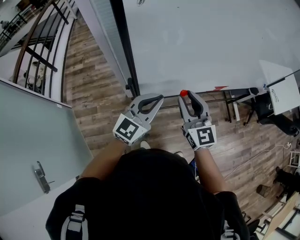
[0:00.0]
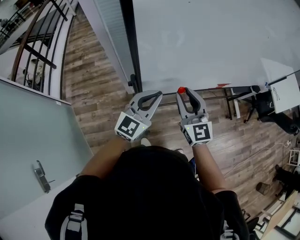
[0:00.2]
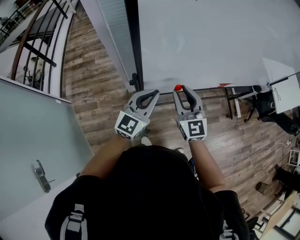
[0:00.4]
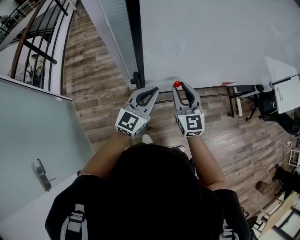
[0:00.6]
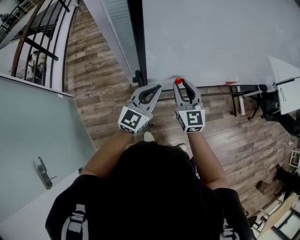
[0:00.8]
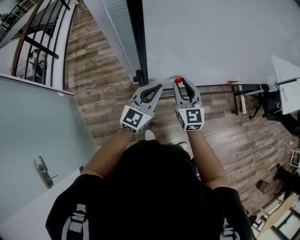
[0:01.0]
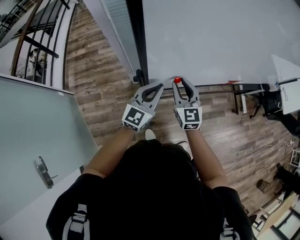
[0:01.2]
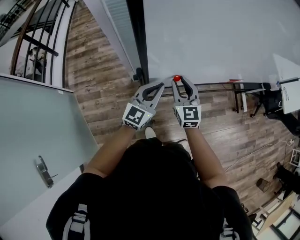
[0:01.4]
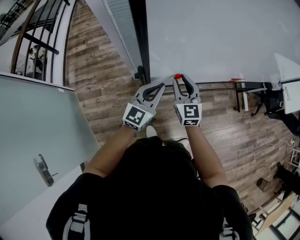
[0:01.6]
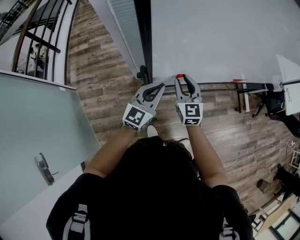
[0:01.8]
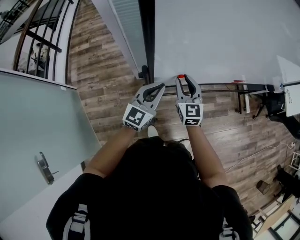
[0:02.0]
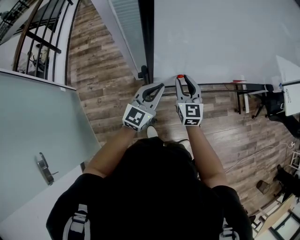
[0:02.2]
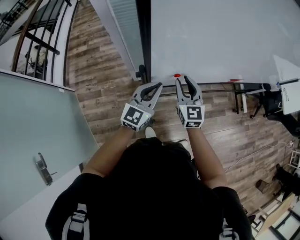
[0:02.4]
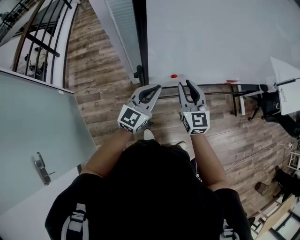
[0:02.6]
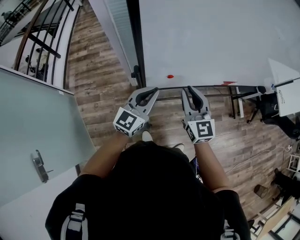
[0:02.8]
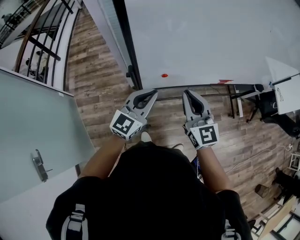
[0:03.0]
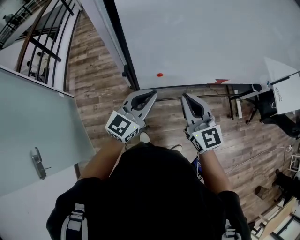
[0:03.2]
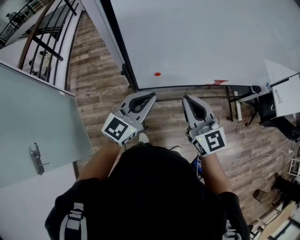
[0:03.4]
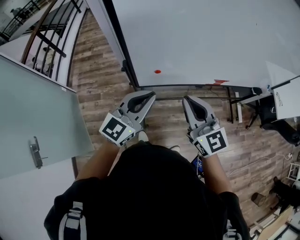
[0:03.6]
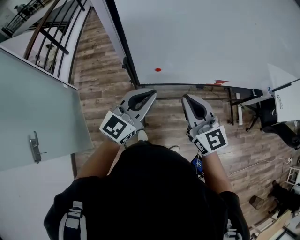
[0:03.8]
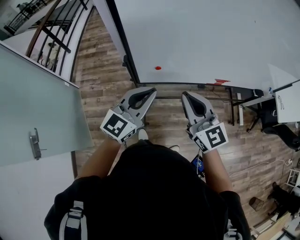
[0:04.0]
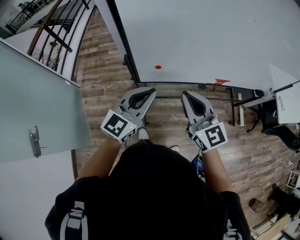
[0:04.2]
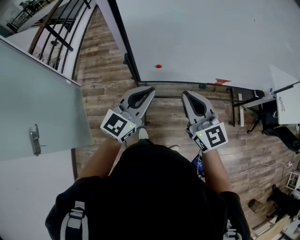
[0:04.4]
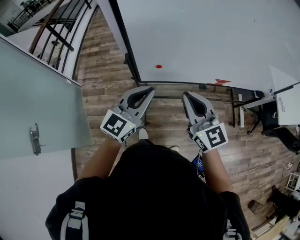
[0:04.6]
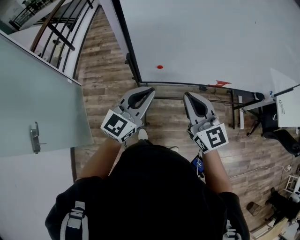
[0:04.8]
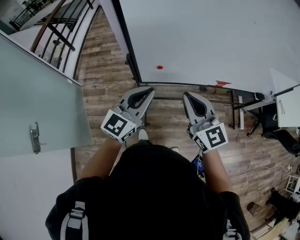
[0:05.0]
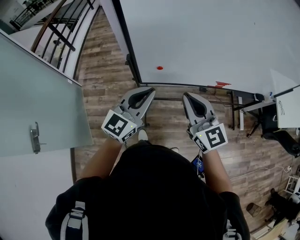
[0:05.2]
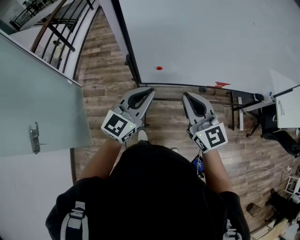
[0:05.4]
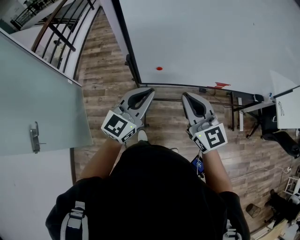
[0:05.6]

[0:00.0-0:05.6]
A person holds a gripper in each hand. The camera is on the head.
0:00.0 to 0:01.4: Both grippers travel together downward, to the left and forward, some 15 cm.
0:01.4 to 0:02.8: The right gripper heads upward, backward and to the right, covering some 10 cm. The left gripper moves upward, roughly 5 cm.
0:02.8 to 0:04.2: The left gripper goes some 15 cm upward, backward and to the right. The right gripper heads backward, upward and to the right, covering roughly 15 cm, and turns by about 20 degrees.
0:04.2 to 0:05.6: Neither gripper changes place.

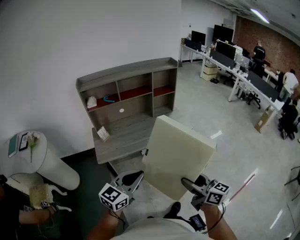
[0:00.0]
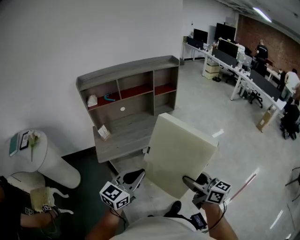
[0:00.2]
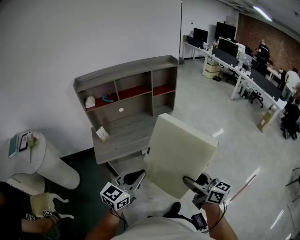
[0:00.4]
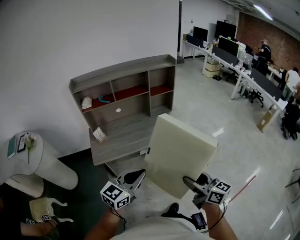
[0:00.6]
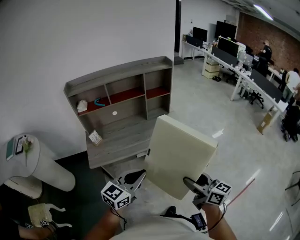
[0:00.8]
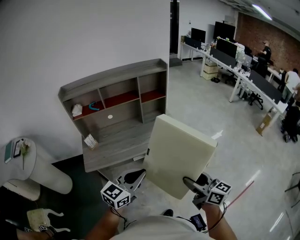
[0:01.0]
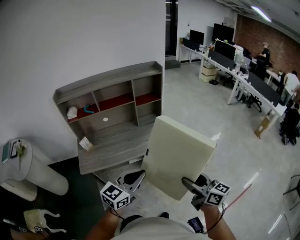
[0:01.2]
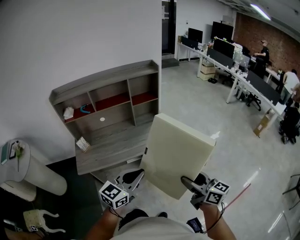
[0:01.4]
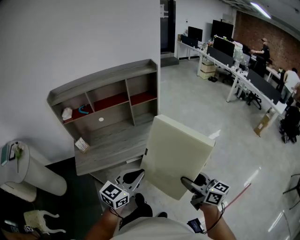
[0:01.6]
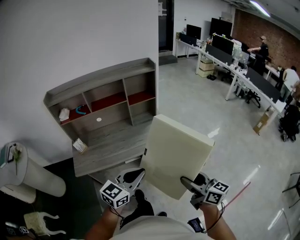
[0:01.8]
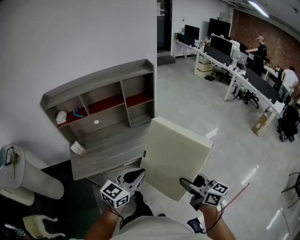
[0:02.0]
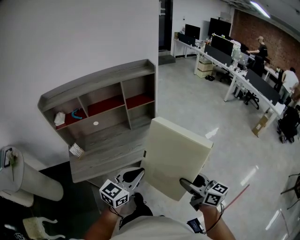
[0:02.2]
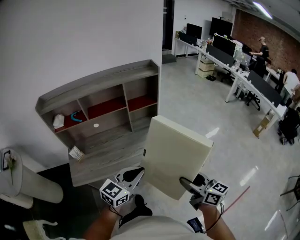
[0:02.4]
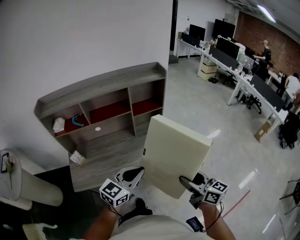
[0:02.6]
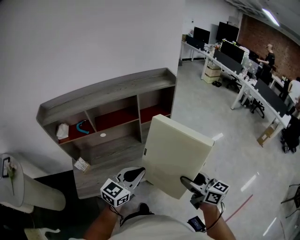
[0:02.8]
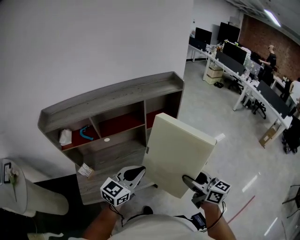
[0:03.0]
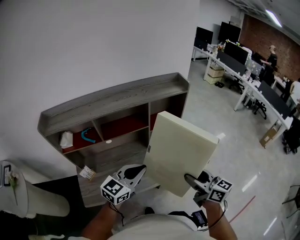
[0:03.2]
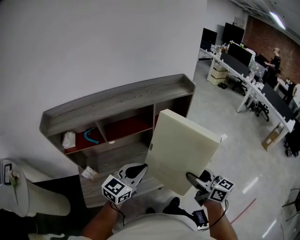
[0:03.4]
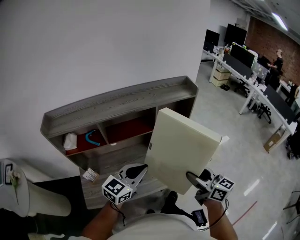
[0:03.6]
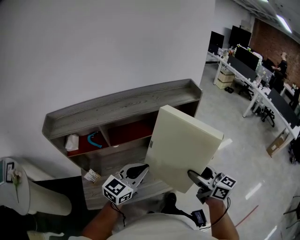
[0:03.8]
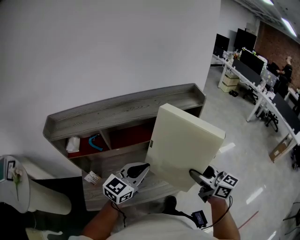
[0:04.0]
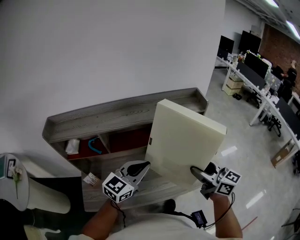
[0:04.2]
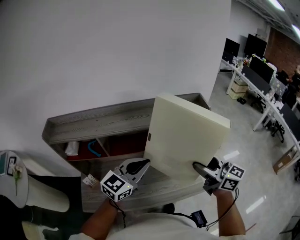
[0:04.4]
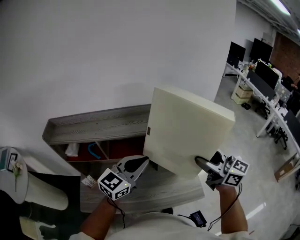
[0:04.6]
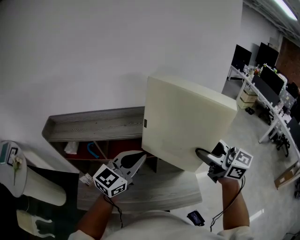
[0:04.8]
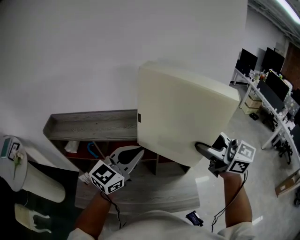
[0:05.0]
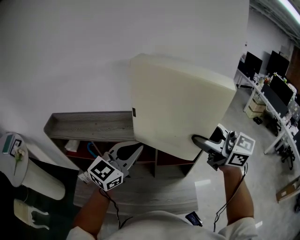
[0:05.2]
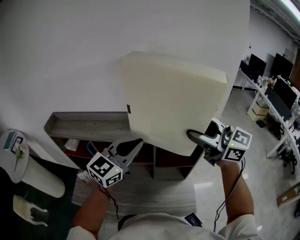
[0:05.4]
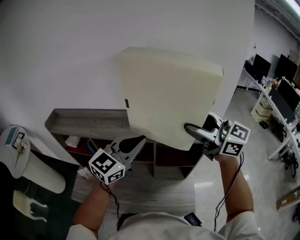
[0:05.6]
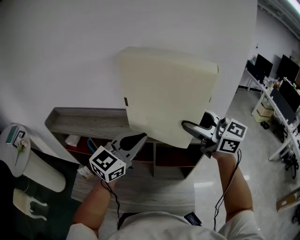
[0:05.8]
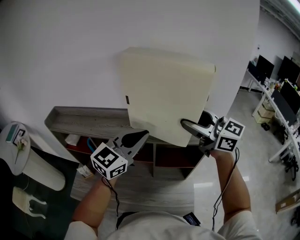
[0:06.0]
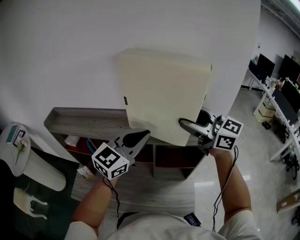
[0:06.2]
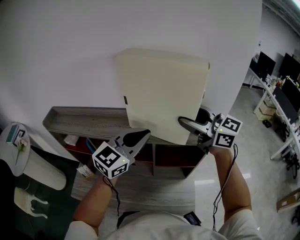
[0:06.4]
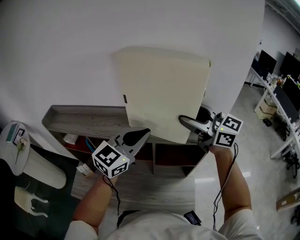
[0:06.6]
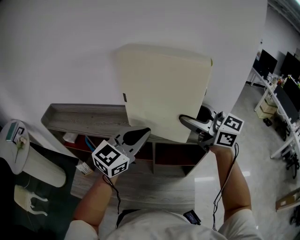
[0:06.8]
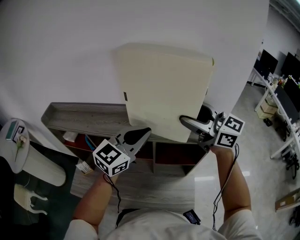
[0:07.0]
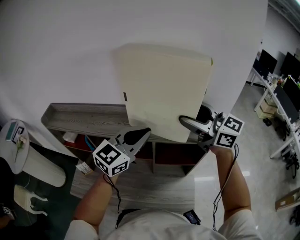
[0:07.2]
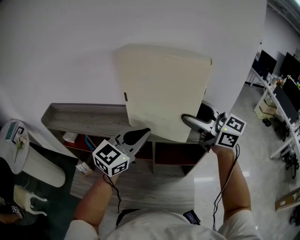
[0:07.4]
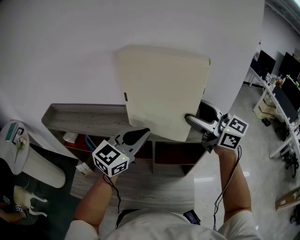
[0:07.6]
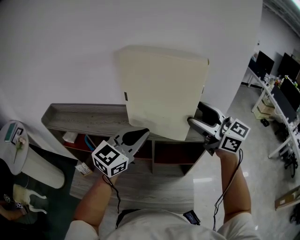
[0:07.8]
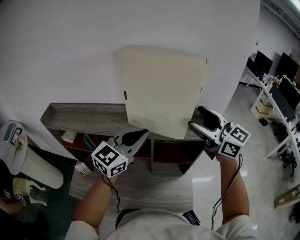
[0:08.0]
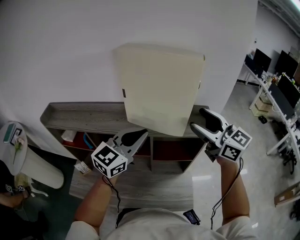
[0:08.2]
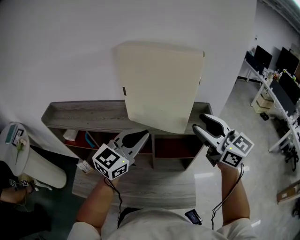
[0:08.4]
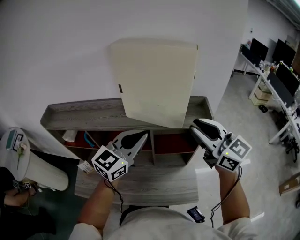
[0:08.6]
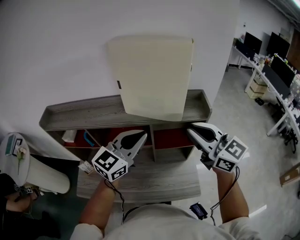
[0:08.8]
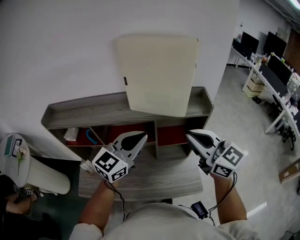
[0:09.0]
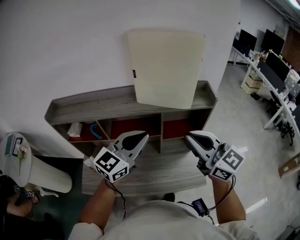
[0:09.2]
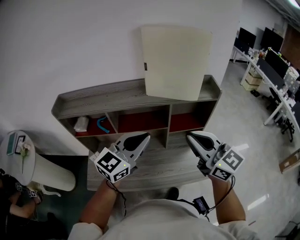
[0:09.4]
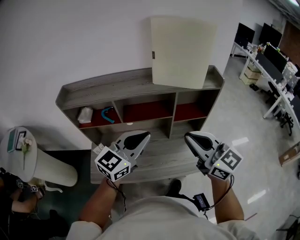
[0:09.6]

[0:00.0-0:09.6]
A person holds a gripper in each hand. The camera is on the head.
0:00.0 to 0:01.6: Both grippers move to the right and forward, approximately 30 cm.
0:01.6 to 0:03.2: Both grippers move forward and to the left, some 35 cm.
0:03.2 to 0:04.8: The two grippers go about 30 cm forward and upward. The right gripper swivels some 30 degrees.
0:04.8 to 0:06.4: The left gripper heads forward and to the right, covering about 10 cm, while the right gripper travels forward by roughly 15 cm.
0:06.4 to 0:08.0: There are only small adjustments of the grippers.
0:08.0 to 0:09.6: The two grippers go about 30 cm backward and to the left. The right gripper closes.

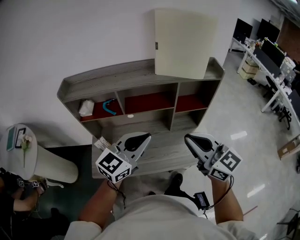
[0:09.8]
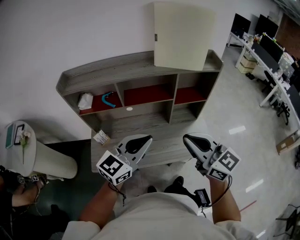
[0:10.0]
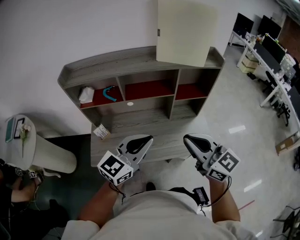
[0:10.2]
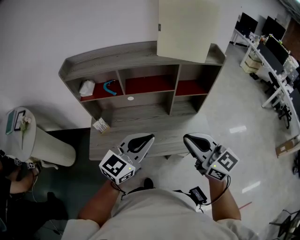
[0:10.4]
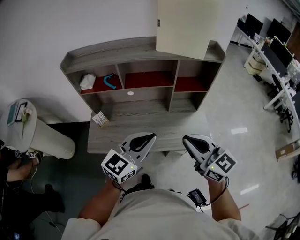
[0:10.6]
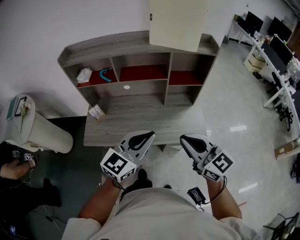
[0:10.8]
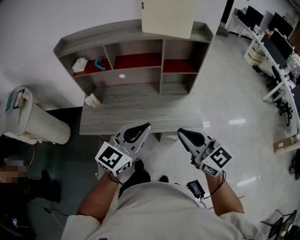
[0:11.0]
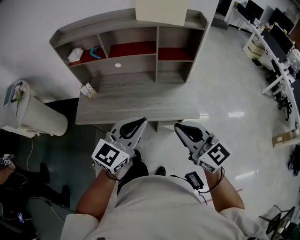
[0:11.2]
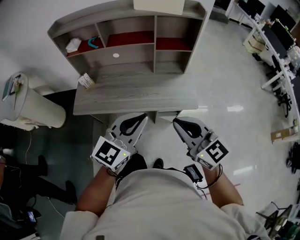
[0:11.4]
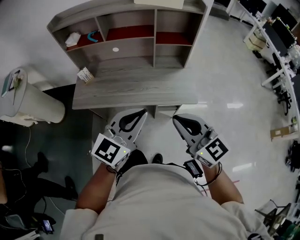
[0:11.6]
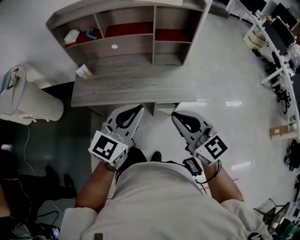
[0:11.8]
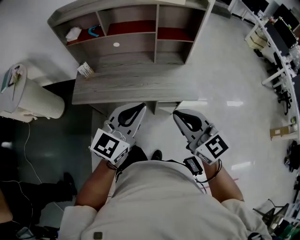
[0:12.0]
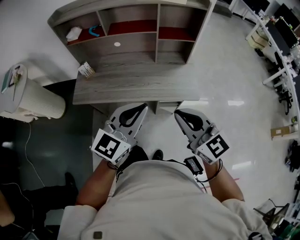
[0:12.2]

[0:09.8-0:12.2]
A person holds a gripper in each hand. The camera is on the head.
0:09.8 to 0:11.0: The left gripper shifts some 20 cm backward and to the right, while the right gripper goes about 20 cm backward, to the right and downward.
0:11.0 to 0:12.2: Both grippers move backward, roughly 10 cm.

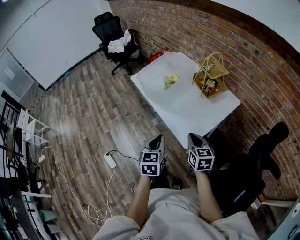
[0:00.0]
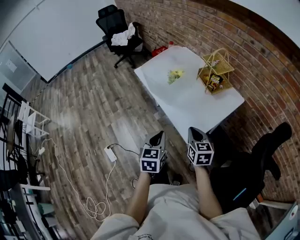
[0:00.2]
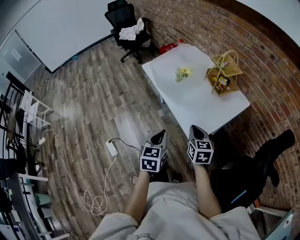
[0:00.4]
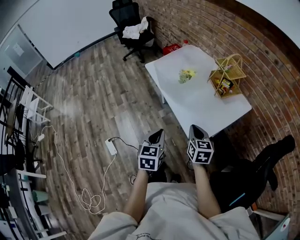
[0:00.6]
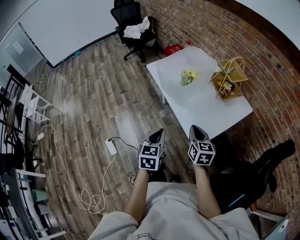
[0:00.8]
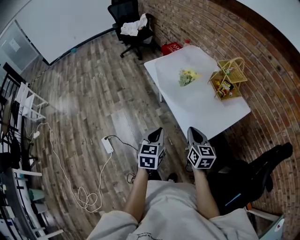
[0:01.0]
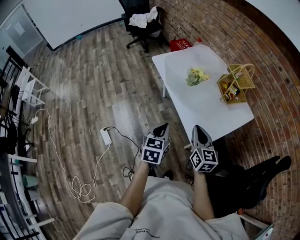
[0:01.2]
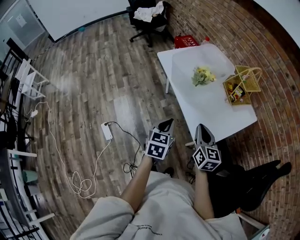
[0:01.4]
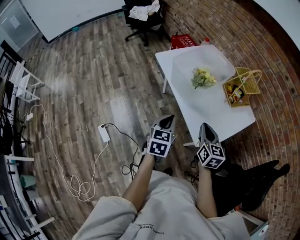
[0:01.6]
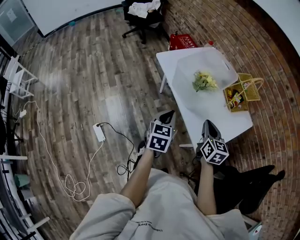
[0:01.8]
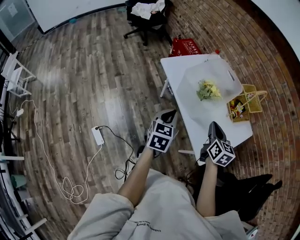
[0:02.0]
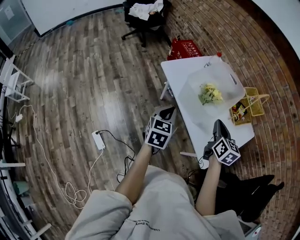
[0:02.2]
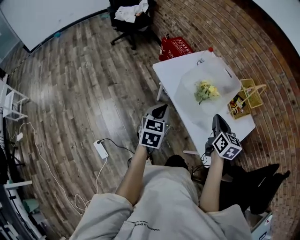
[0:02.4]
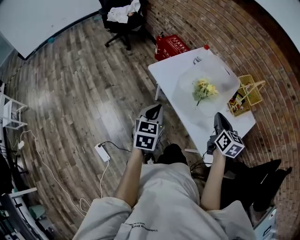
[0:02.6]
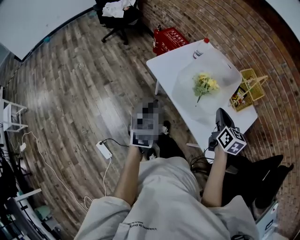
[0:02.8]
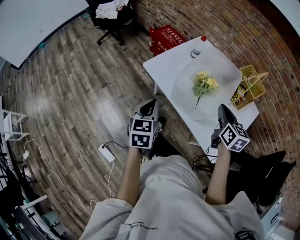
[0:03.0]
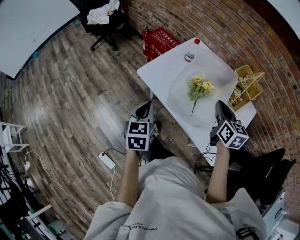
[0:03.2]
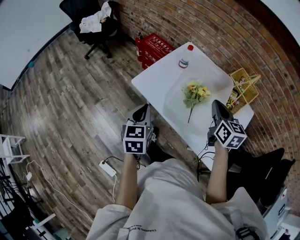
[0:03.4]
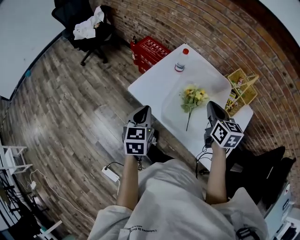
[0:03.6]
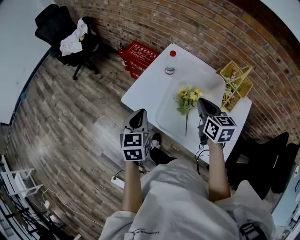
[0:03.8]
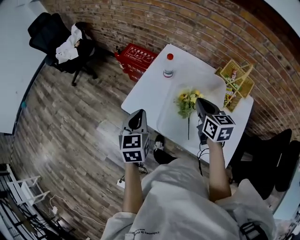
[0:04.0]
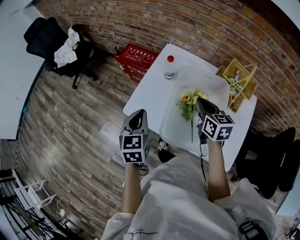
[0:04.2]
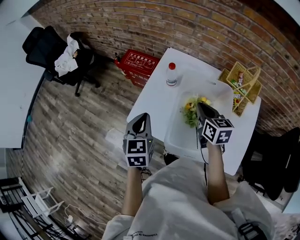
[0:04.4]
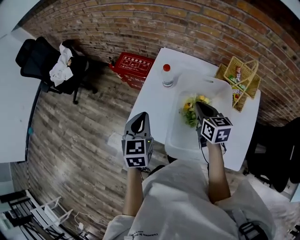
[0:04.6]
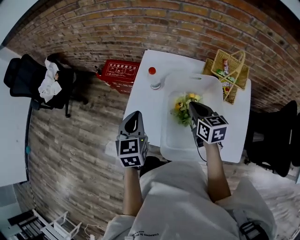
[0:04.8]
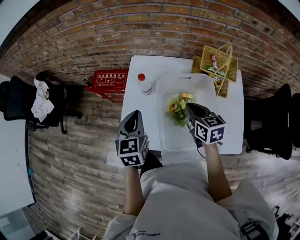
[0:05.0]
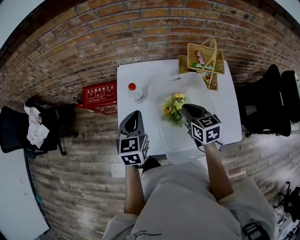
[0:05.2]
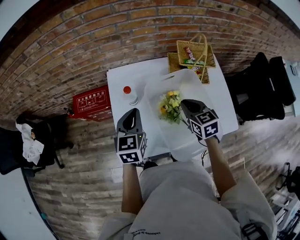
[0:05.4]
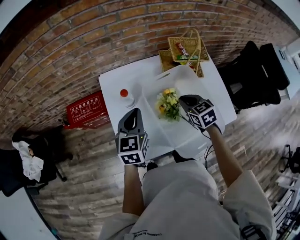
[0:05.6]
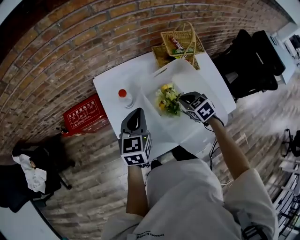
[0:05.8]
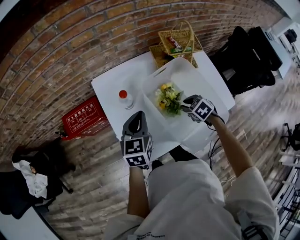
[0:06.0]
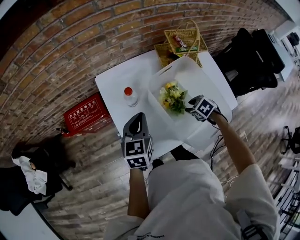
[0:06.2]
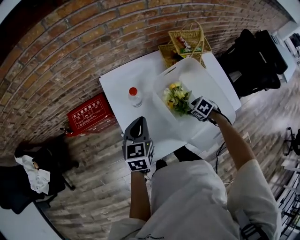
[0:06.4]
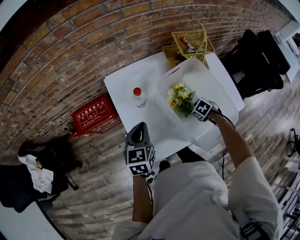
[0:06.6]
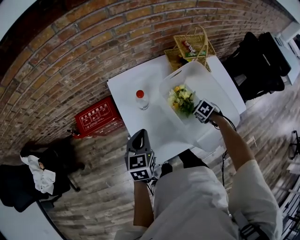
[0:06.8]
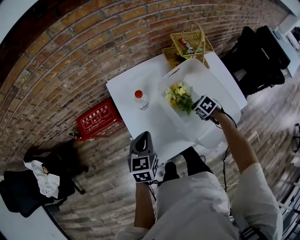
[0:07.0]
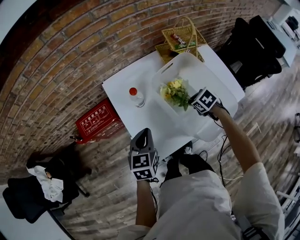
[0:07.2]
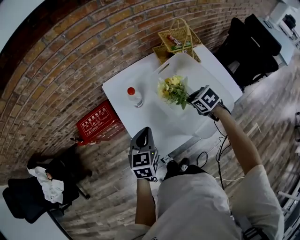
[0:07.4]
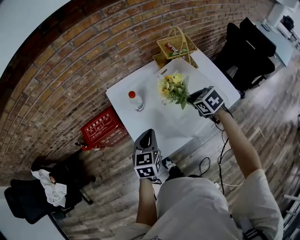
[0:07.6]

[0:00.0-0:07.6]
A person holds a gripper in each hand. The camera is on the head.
0:00.0 to 0:01.6: The two grippers go about 15 cm forward and to the left.
0:01.6 to 0:03.0: The left gripper goes about 25 cm forward and to the left, while the right gripper travels forward by approximately 20 cm.
0:03.0 to 0:04.6: Both grippers move forward, roughly 25 cm. The left gripper rotates approximately 20 degrees.
0:04.6 to 0:06.0: The right gripper goes about 15 cm downward, tilts its fingers roughly 40 degrees downward, and opens up. Meanwhile the left gripper changes place by approximately 15 cm, and rotates about 50 degrees.
0:06.0 to 0:07.6: The right gripper moves upward, approximately 10 cm, and opens, then closes once more, while the left gripper shifts by approximately 10 cm.
